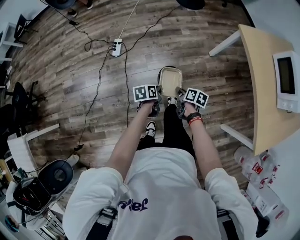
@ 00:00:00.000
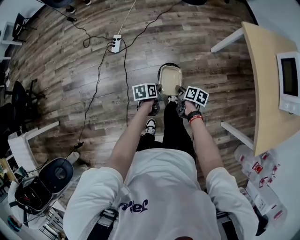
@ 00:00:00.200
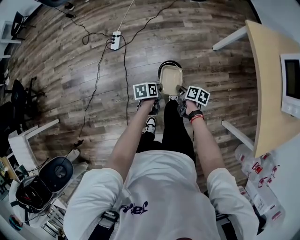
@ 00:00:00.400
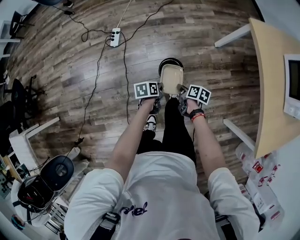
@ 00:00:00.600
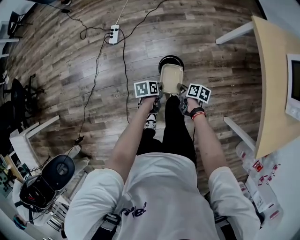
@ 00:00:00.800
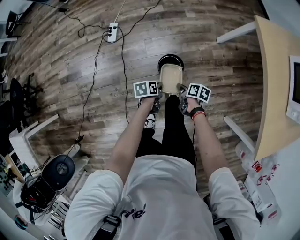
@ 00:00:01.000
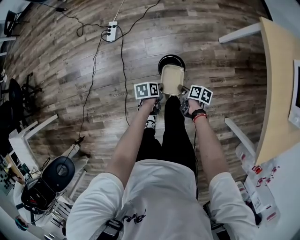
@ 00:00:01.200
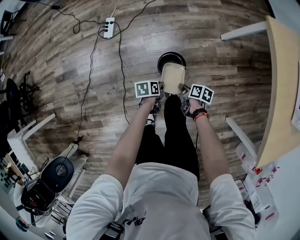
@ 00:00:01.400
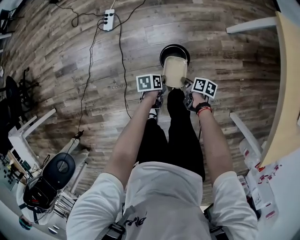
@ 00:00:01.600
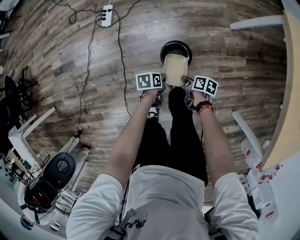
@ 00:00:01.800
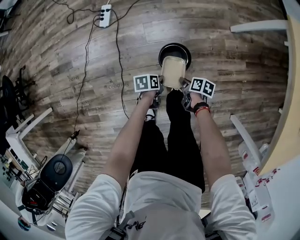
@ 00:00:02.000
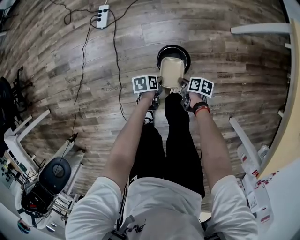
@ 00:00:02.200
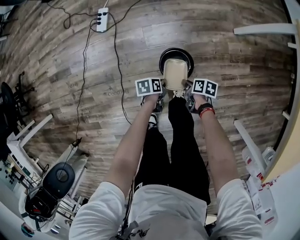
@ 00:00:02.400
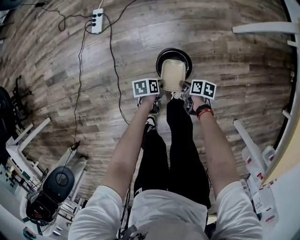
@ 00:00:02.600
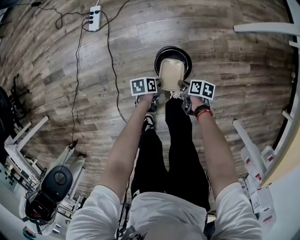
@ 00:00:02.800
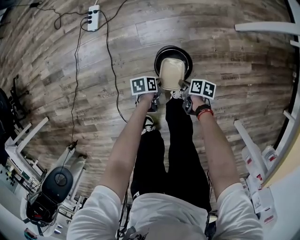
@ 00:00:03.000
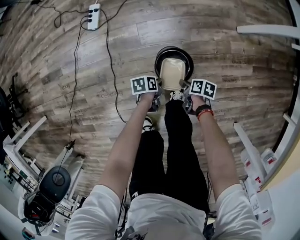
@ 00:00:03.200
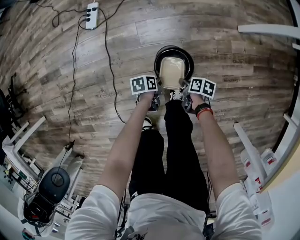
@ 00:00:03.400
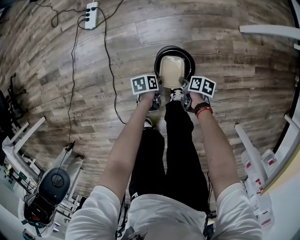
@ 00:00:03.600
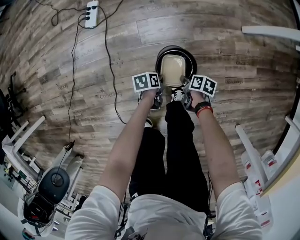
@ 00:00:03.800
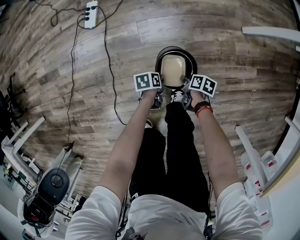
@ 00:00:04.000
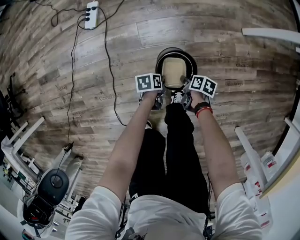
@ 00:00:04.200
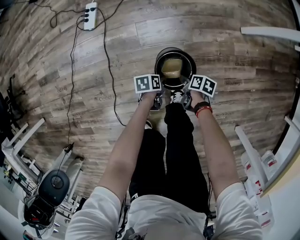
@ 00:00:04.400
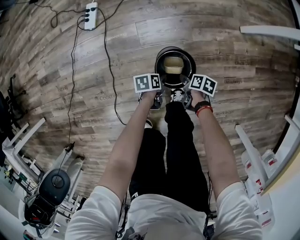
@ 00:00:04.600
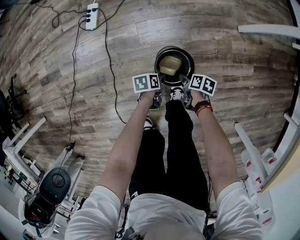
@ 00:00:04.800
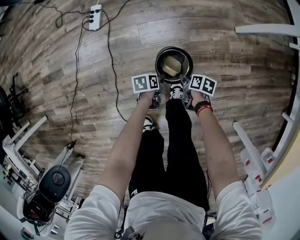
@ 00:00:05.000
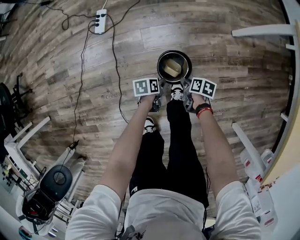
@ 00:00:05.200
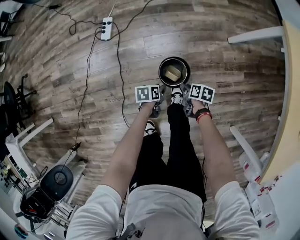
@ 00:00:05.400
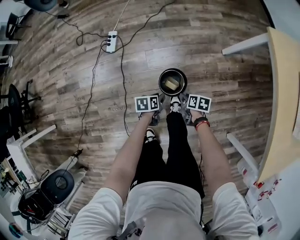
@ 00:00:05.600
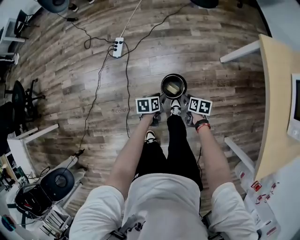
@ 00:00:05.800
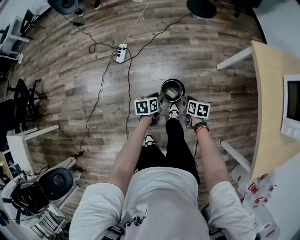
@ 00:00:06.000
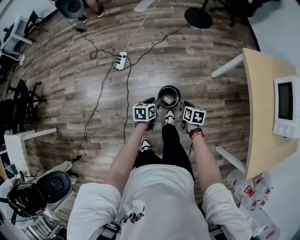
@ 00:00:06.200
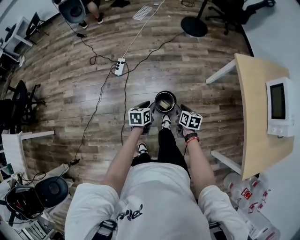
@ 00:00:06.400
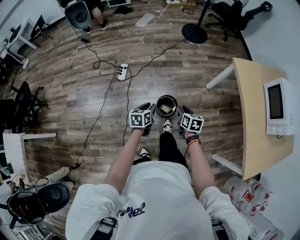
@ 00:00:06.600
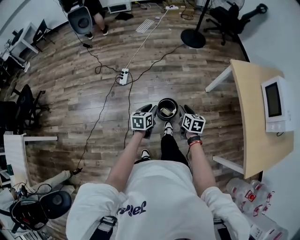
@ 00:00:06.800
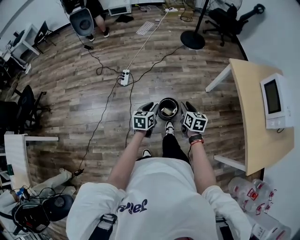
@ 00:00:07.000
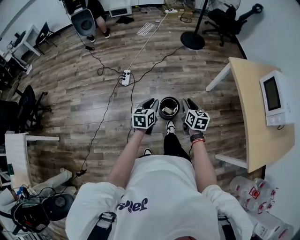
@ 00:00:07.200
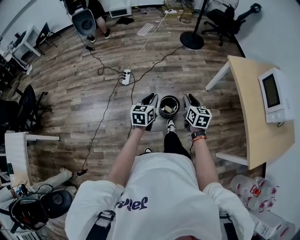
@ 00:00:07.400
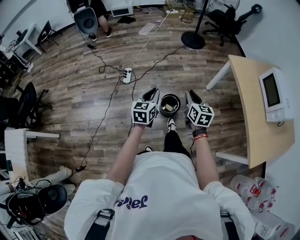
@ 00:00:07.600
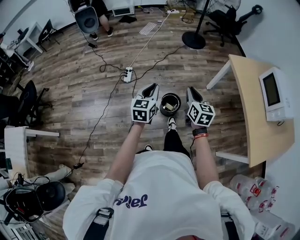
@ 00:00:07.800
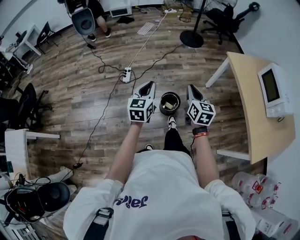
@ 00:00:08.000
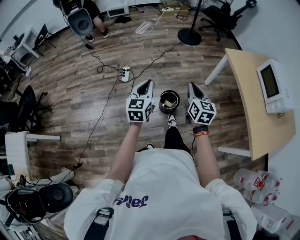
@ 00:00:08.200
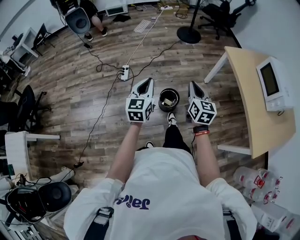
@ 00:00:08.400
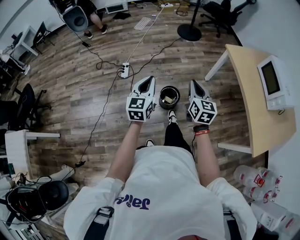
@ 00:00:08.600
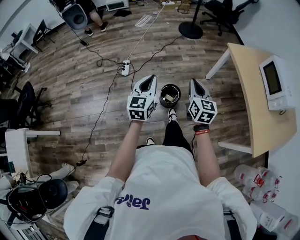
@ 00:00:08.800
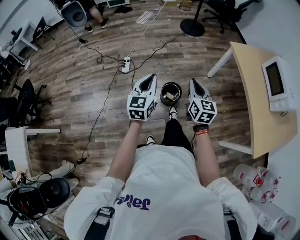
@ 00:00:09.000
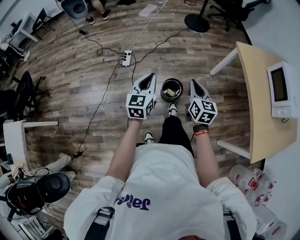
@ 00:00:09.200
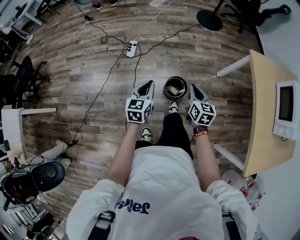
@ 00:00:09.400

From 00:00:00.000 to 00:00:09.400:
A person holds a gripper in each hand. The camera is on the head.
From 00:00:00.000 to 00:00:01.600: Both grippers travel together downward, roughly 25 cm.
From 00:00:01.600 to 00:00:03.200: The grippers both shift downward by about 25 cm.
From 00:00:04.800 to 00:00:06.200: Both grippers travel together upward, about 50 cm. The right gripper changes its angle by some 30 degrees, while the left gripper swivels roughly 30 degrees.
From 00:00:06.200 to 00:00:07.800: The grippers both shift upward and backward by about 35 cm. The left gripper changes its angle by roughly 40 degrees, and closes its fingers; the right gripper angles its fingers upward, by some 30 degrees, and closes.
From 00:00:07.800 to 00:00:09.400: The two grippers go approximately 10 cm downward and forward.

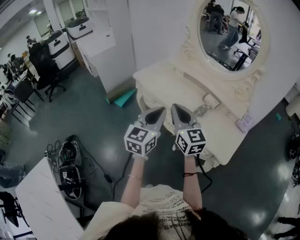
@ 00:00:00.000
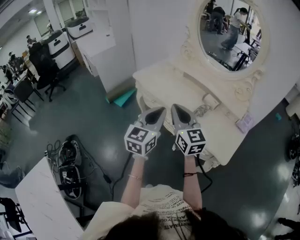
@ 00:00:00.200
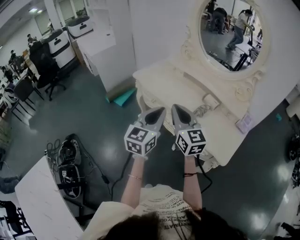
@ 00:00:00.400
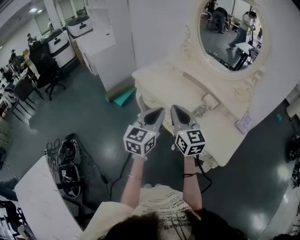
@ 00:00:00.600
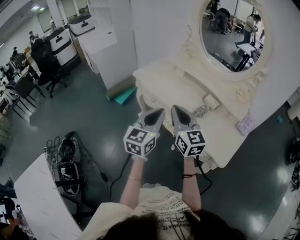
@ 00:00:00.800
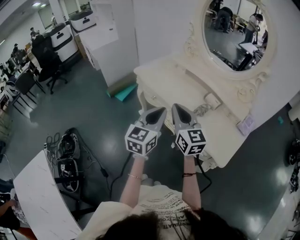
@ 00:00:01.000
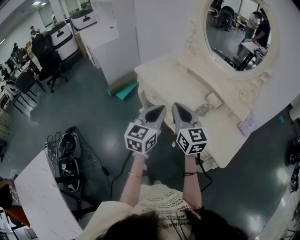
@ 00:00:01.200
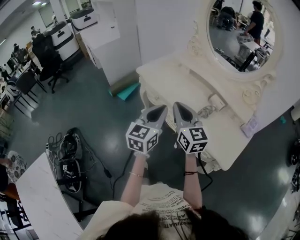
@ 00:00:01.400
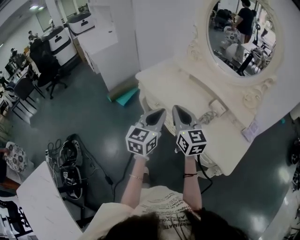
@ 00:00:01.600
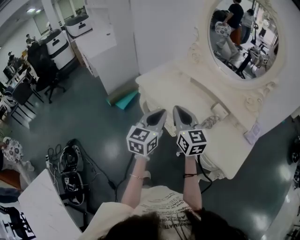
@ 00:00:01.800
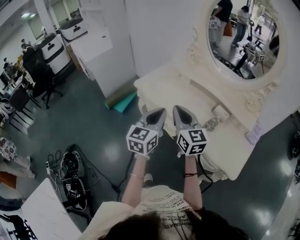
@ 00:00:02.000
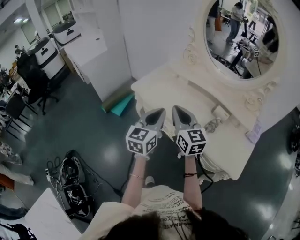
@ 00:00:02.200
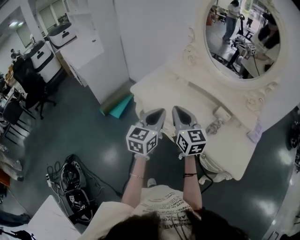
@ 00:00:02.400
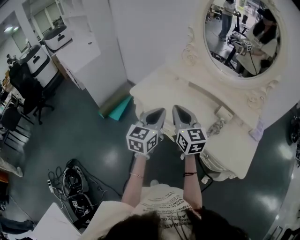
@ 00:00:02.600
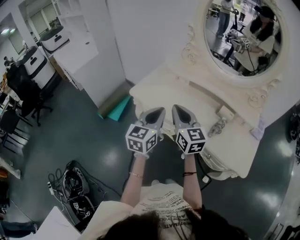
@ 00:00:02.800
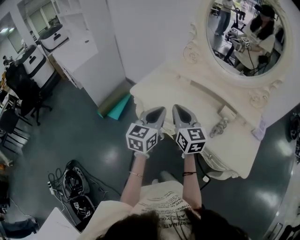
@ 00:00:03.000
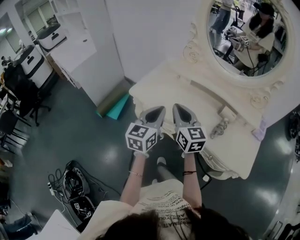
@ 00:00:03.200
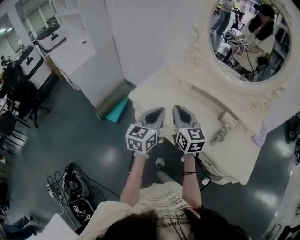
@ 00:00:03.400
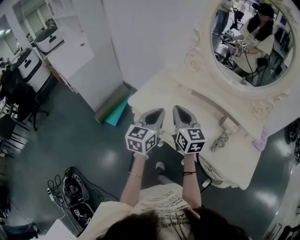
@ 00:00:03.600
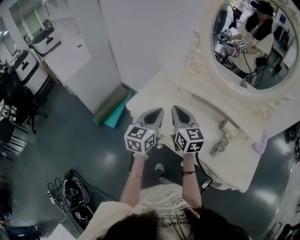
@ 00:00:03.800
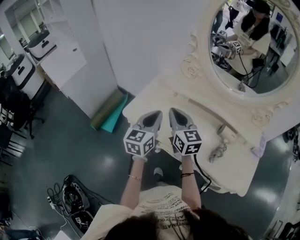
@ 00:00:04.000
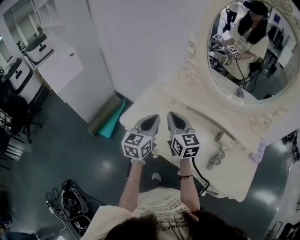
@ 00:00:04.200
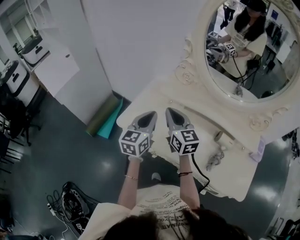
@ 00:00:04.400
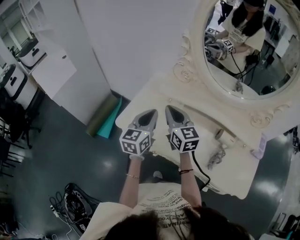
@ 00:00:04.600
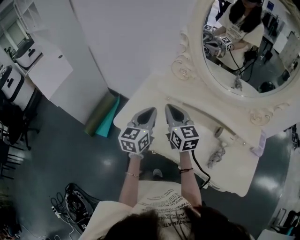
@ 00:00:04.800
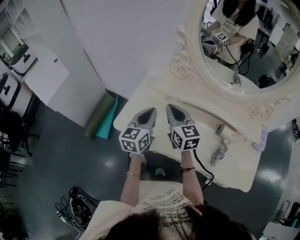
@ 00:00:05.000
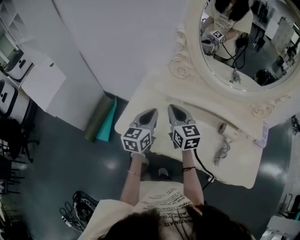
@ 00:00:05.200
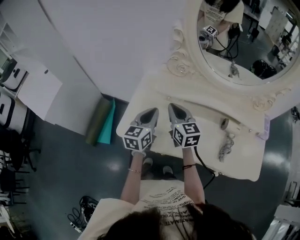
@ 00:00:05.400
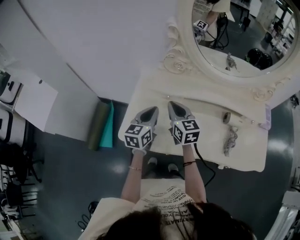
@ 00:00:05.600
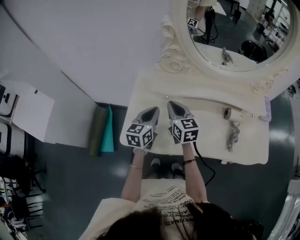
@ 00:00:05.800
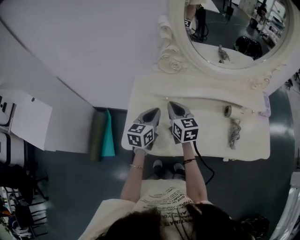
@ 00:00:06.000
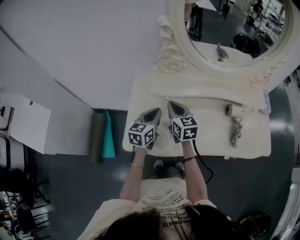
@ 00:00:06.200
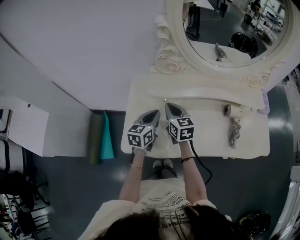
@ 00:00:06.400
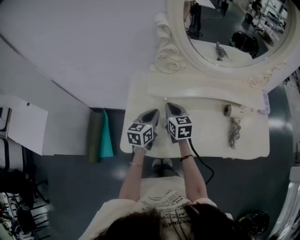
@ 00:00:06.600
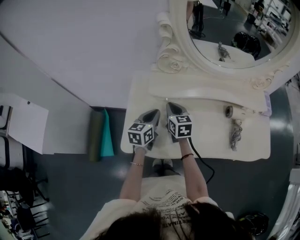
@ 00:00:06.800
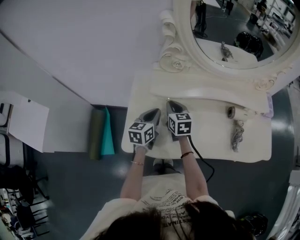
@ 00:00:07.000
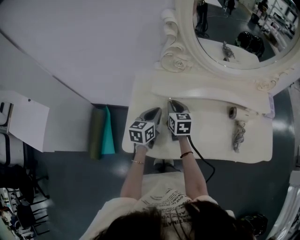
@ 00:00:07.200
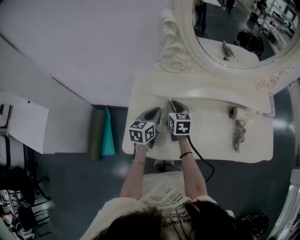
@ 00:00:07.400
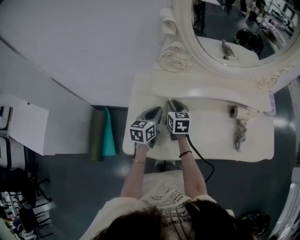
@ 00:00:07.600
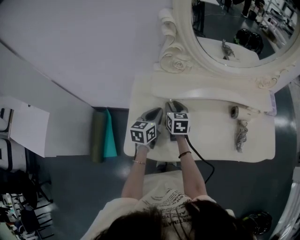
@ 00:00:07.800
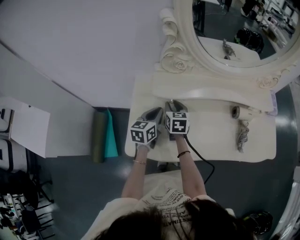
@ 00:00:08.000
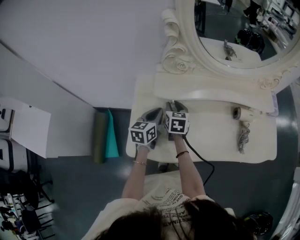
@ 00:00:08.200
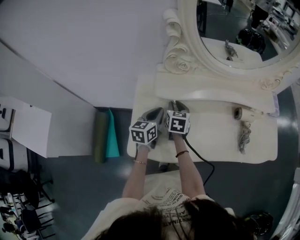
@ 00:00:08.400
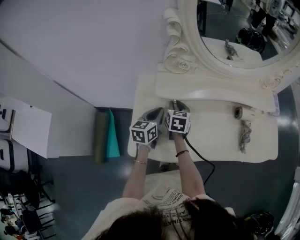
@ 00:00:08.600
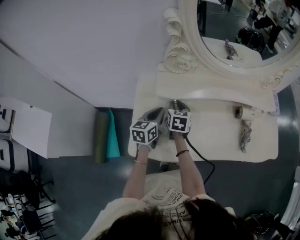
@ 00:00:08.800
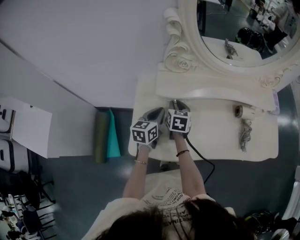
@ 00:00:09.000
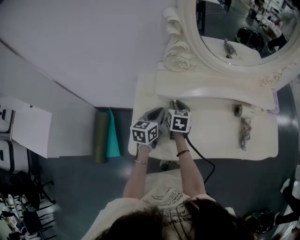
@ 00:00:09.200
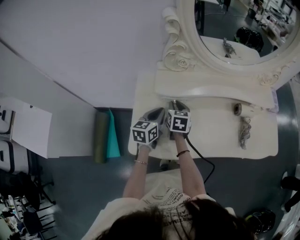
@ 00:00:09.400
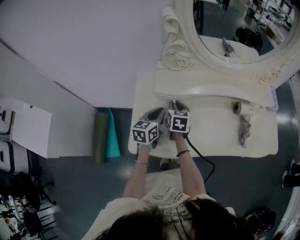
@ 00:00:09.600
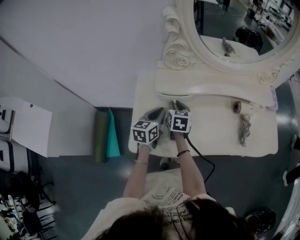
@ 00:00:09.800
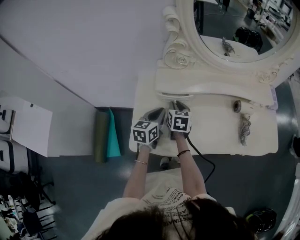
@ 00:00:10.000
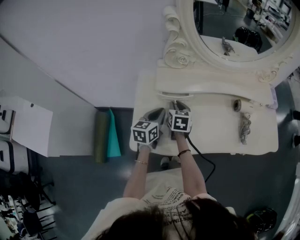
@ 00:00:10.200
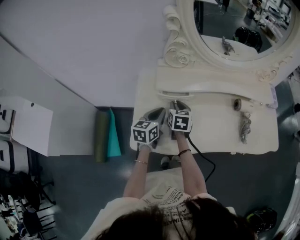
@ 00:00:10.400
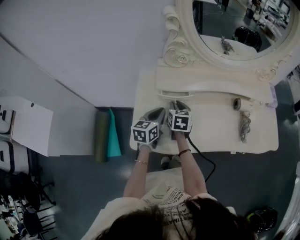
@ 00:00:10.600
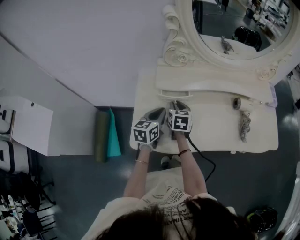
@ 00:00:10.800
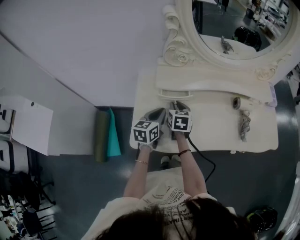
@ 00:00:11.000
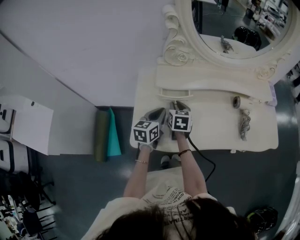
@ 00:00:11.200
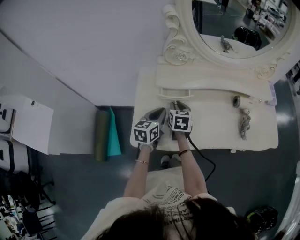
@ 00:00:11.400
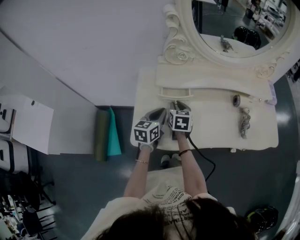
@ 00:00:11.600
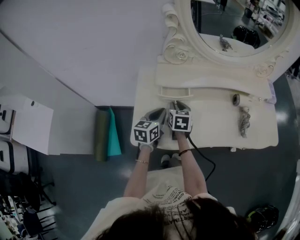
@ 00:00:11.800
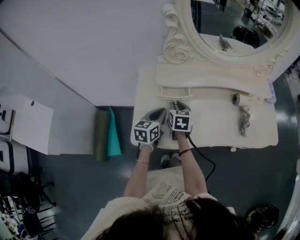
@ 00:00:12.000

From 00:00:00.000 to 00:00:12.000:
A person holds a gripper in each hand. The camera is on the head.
From 00:00:00.000 to 00:00:01.600: Both grippers travel together forward, some 5 cm.
From 00:00:01.600 to 00:00:03.000: Both grippers move forward and to the left, some 20 cm.
From 00:00:03.000 to 00:00:04.400: Both grippers travel together forward, roughly 20 cm.
From 00:00:04.400 to 00:00:06.000: The left gripper shifts by some 15 cm, and turns by approximately 30 degrees; the right gripper ends up about 15 cm from where it was, and turns by some 30 degrees.
From 00:00:06.000 to 00:00:07.600: The right gripper is displaced downward and forward by approximately 10 cm, and opens its fingers, while the left gripper heads downward, covering some 5 cm.
From 00:00:07.600 to 00:00:10.400: The grippers move only a little.
From 00:00:10.400 to 00:00:12.000: The grippers make only small movements.

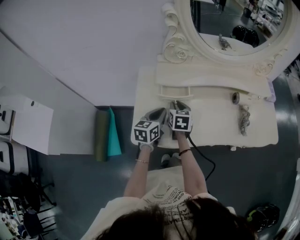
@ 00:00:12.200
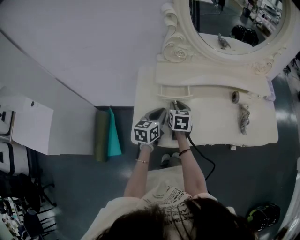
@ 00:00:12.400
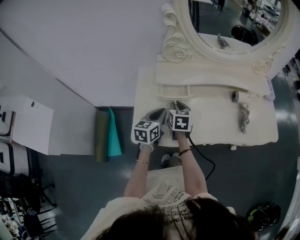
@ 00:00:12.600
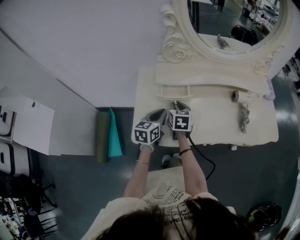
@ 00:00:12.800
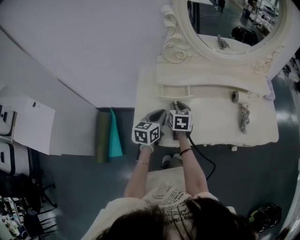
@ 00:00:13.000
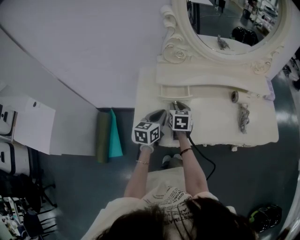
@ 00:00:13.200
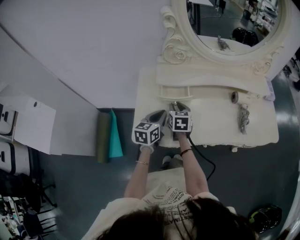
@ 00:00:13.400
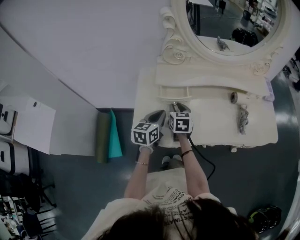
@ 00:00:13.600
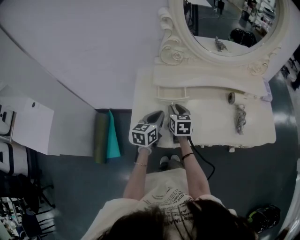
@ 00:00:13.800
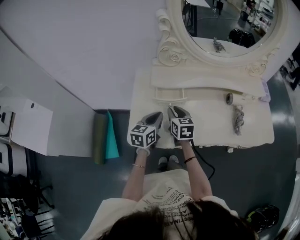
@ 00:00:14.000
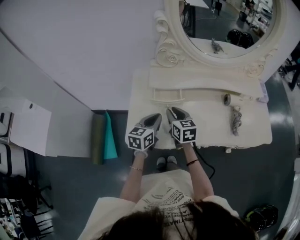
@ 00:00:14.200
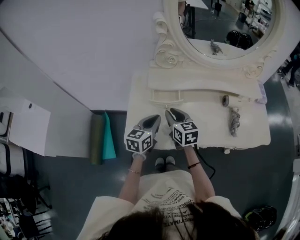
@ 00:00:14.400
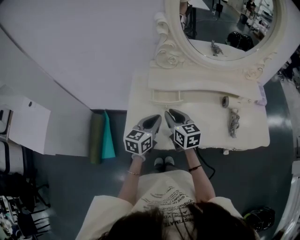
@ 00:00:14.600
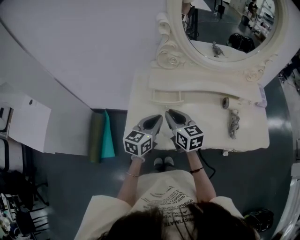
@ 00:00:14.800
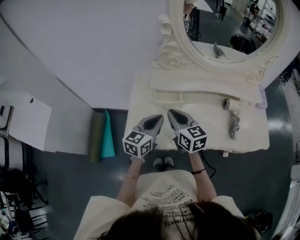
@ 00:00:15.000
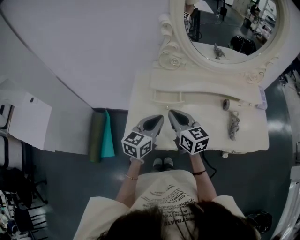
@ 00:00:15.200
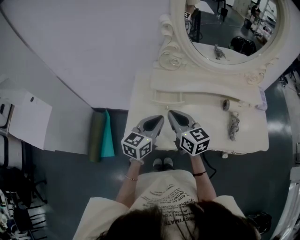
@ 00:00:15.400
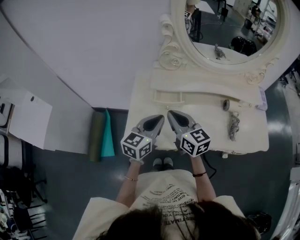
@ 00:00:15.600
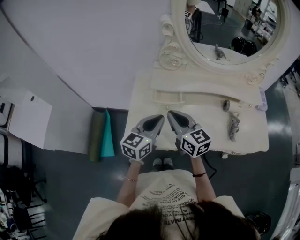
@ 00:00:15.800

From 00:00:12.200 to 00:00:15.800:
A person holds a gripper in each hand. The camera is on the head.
From 00:00:12.200 to 00:00:14.000: There are only small adjustments of the grippers.
From 00:00:14.000 to 00:00:15.800: The left gripper heads upward, covering some 10 cm; the right gripper heads upward and backward, covering approximately 15 cm, changes its angle by about 30 degrees, and closes its fingers.
